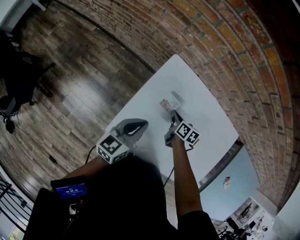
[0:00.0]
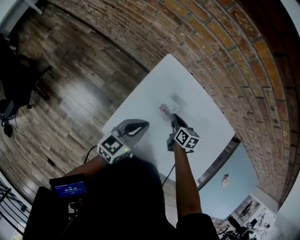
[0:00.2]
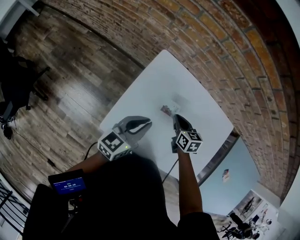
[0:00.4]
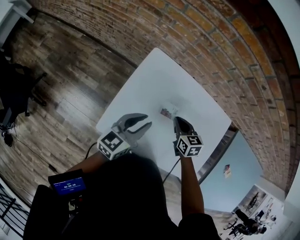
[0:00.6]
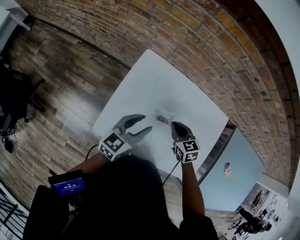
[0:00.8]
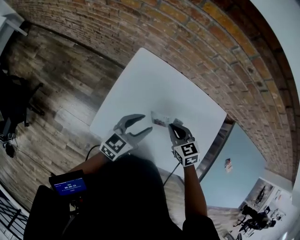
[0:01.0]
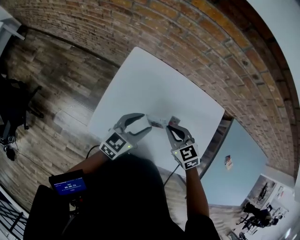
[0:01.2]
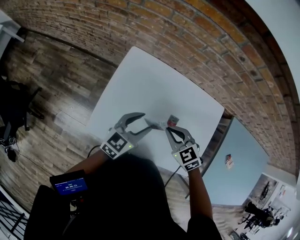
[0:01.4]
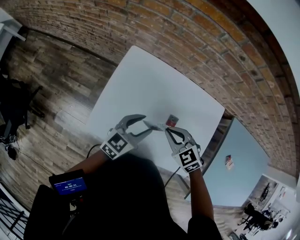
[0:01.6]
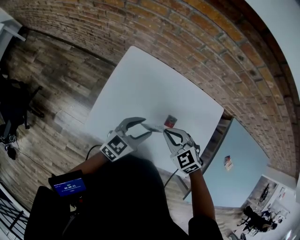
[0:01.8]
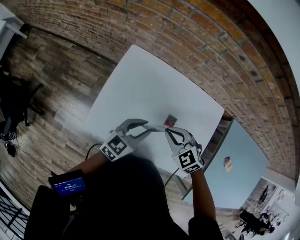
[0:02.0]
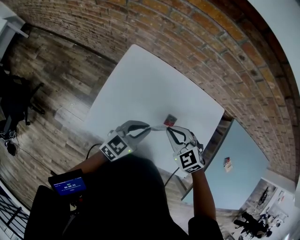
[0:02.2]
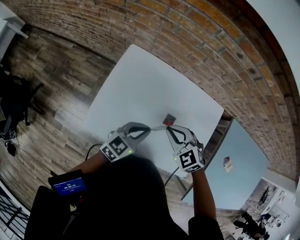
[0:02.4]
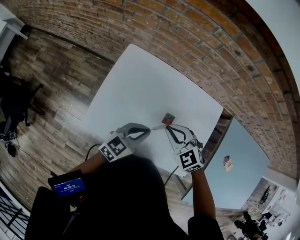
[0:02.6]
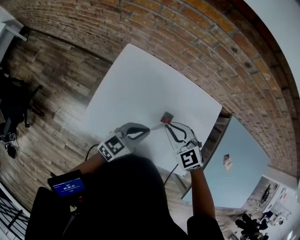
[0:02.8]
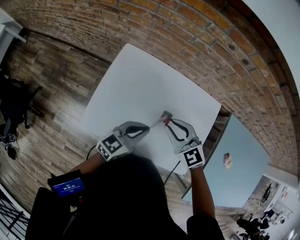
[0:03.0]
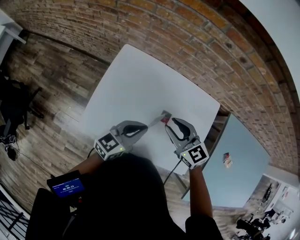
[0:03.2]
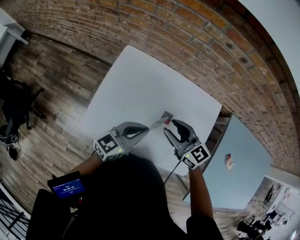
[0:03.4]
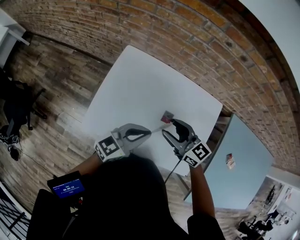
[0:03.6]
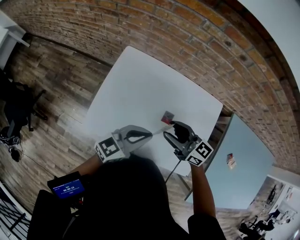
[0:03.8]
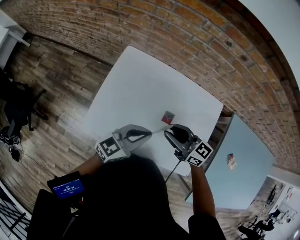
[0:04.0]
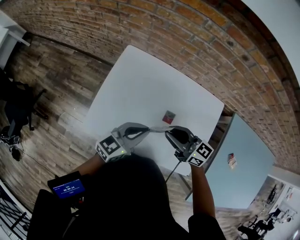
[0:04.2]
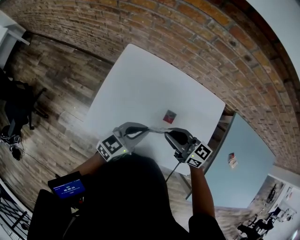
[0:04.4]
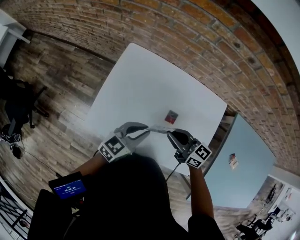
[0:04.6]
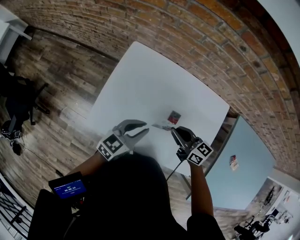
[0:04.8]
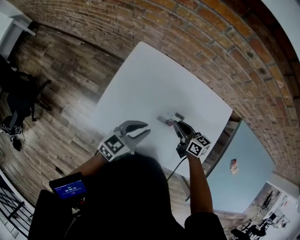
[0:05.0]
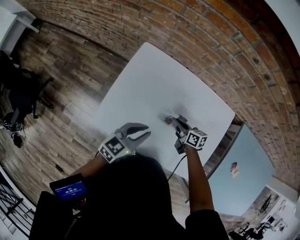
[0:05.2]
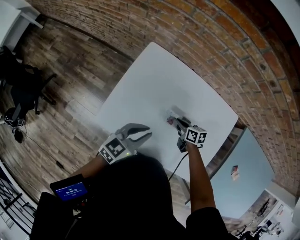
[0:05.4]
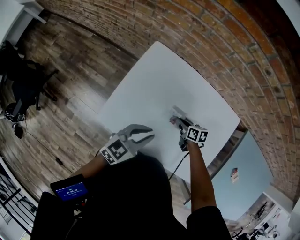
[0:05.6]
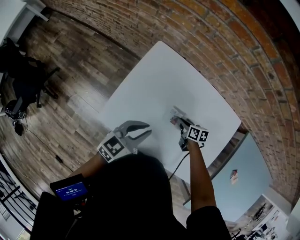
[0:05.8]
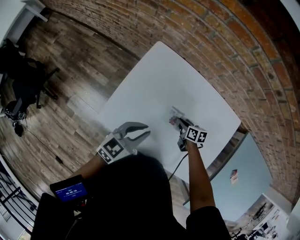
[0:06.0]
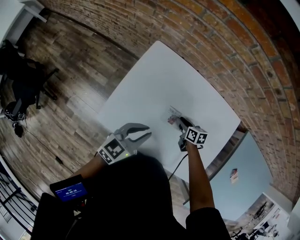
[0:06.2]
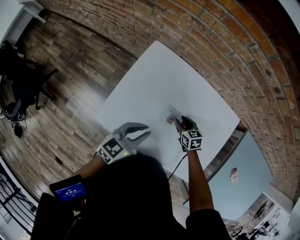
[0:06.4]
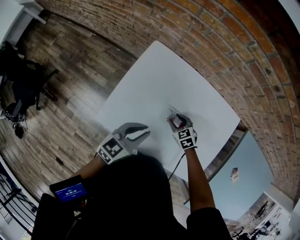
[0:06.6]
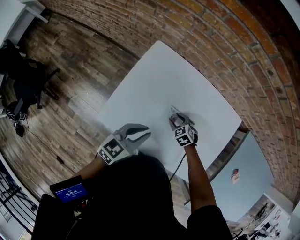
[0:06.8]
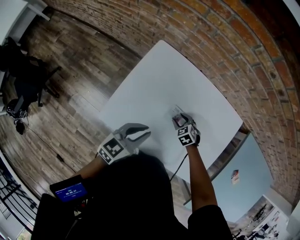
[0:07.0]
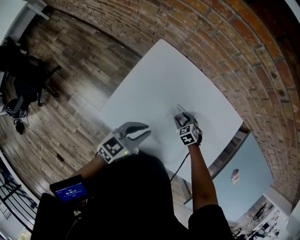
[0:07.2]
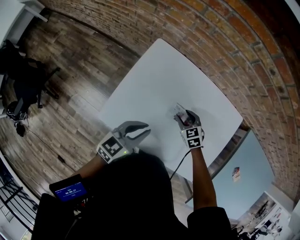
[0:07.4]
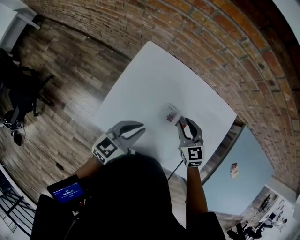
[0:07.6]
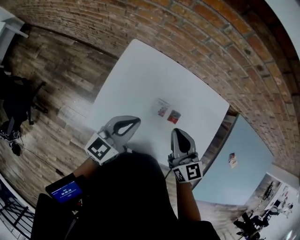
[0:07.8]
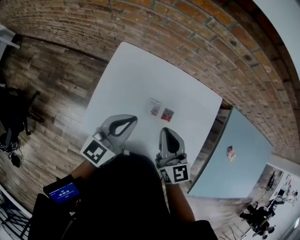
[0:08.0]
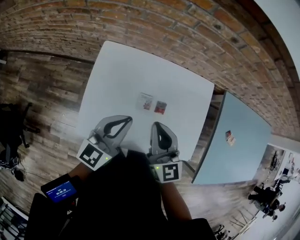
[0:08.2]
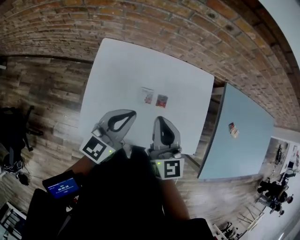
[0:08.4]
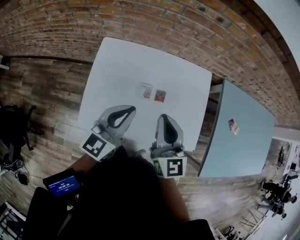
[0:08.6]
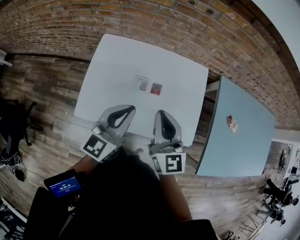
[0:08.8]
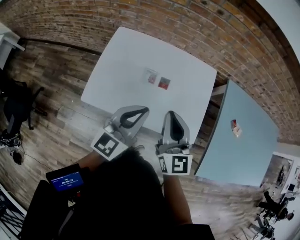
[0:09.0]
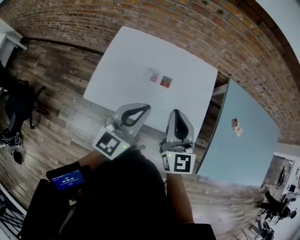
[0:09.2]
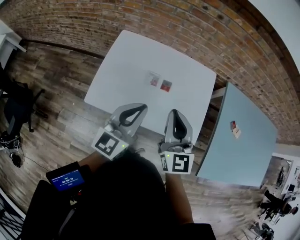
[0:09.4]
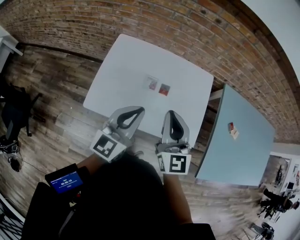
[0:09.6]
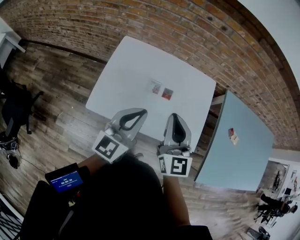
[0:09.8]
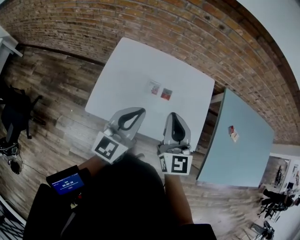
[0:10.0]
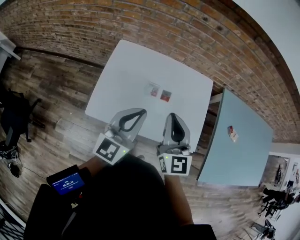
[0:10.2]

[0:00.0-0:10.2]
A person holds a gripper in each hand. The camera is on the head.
0.0 to 1.4 s: The left gripper is displaced to the right by about 15 cm, rotates about 20 degrees, and opens, while the right gripper goes some 25 cm upward, backward and to the right, and twists approximately 60 degrees counterclockwise, seen from behind.
1.4 to 3.0 s: The left gripper is displaced to the right by some 5 cm, and closes. The right gripper travels upward by about 5 cm.
3.0 to 4.4 s: The right gripper rotates some 40 degrees, and opens, then closes again.
4.4 to 5.8 s: The left gripper shifts some 10 cm to the left. Meanwhile the right gripper is displaced downward by some 25 cm, and points its fingers some 30 degrees further downward.
5.8 to 7.2 s: The right gripper twists some 60 degrees counterclockwise, seen from behind, and opens.
7.2 to 8.8 s: The left gripper travels upward and to the right by roughly 15 cm, and turns by roughly 20 degrees. The right gripper travels upward and backward by roughly 40 cm, tilts its fingers some 60 degrees upward, and closes.

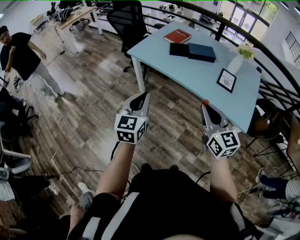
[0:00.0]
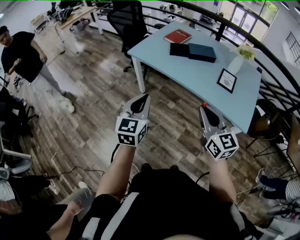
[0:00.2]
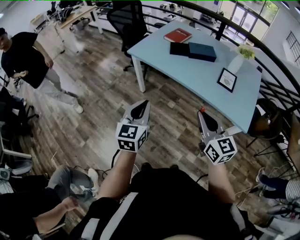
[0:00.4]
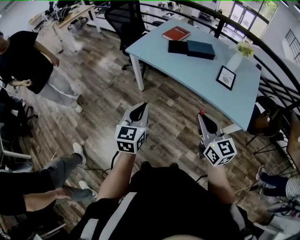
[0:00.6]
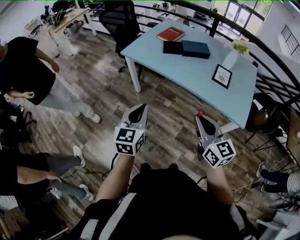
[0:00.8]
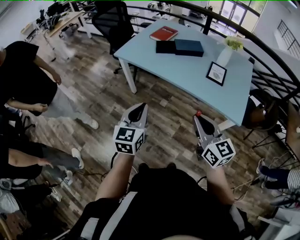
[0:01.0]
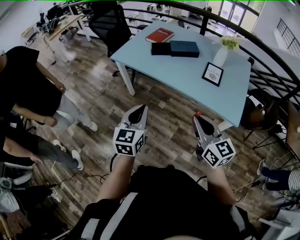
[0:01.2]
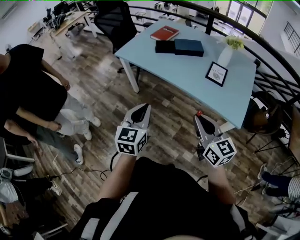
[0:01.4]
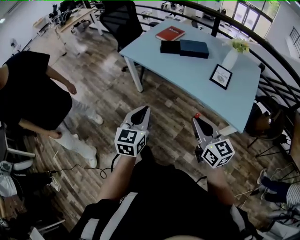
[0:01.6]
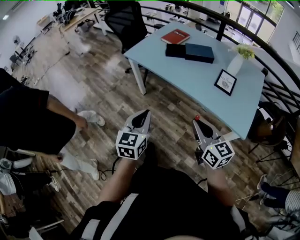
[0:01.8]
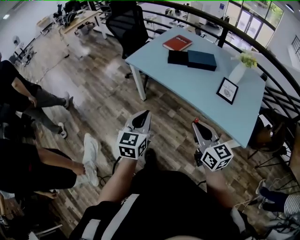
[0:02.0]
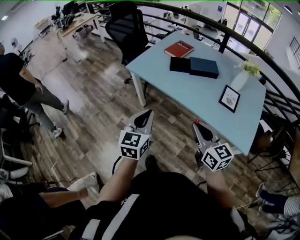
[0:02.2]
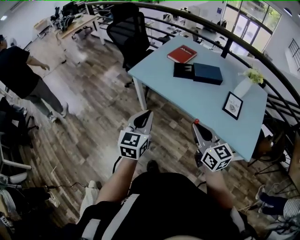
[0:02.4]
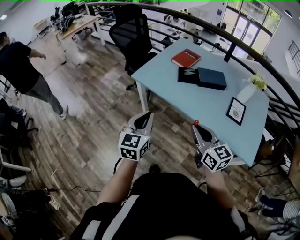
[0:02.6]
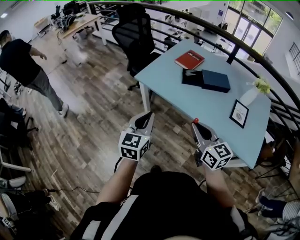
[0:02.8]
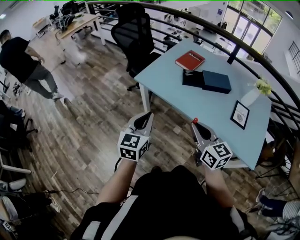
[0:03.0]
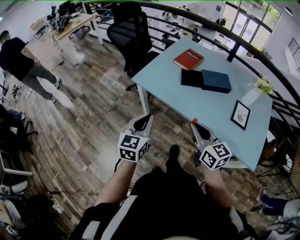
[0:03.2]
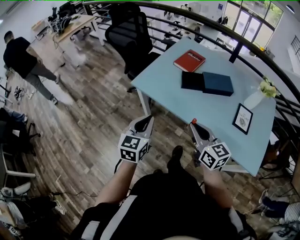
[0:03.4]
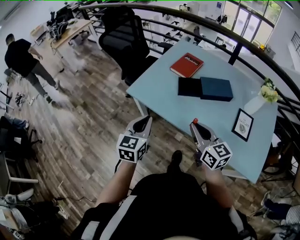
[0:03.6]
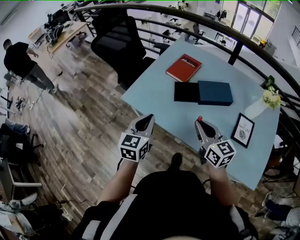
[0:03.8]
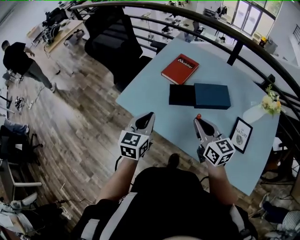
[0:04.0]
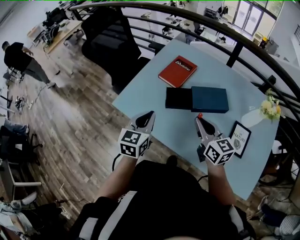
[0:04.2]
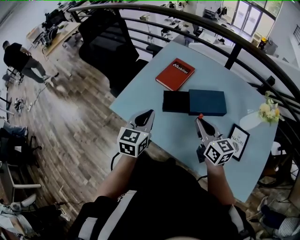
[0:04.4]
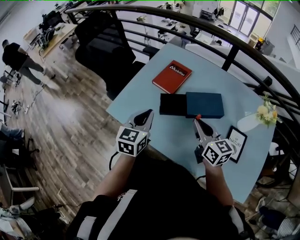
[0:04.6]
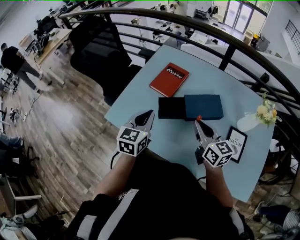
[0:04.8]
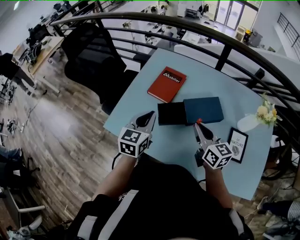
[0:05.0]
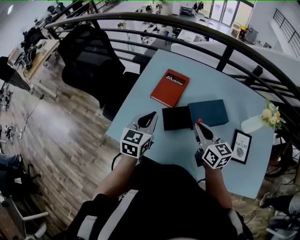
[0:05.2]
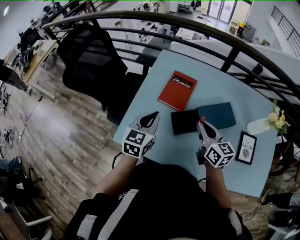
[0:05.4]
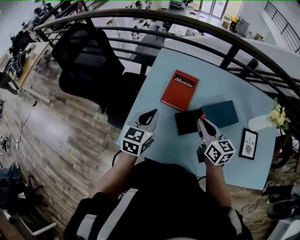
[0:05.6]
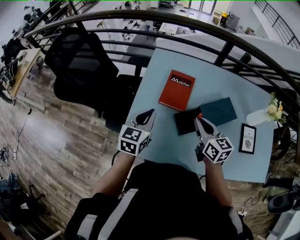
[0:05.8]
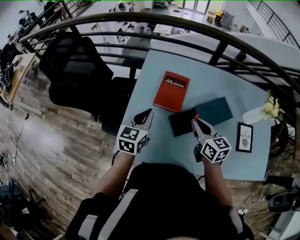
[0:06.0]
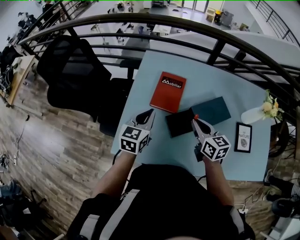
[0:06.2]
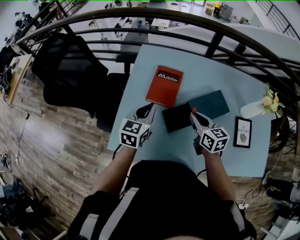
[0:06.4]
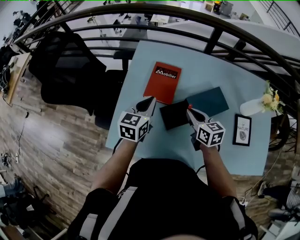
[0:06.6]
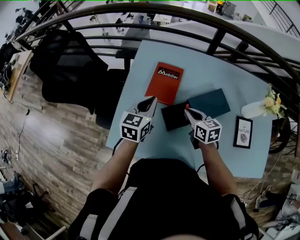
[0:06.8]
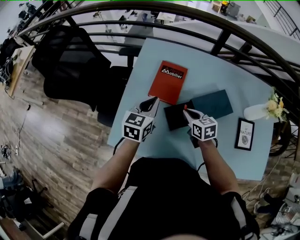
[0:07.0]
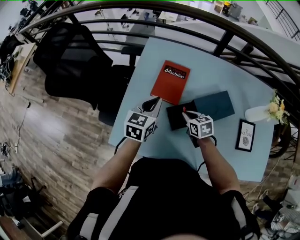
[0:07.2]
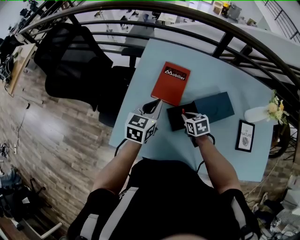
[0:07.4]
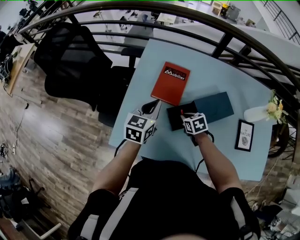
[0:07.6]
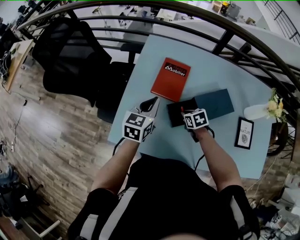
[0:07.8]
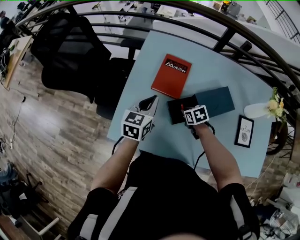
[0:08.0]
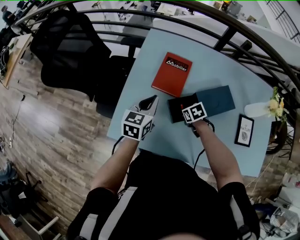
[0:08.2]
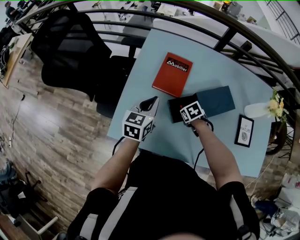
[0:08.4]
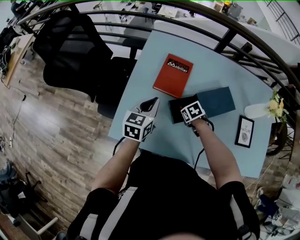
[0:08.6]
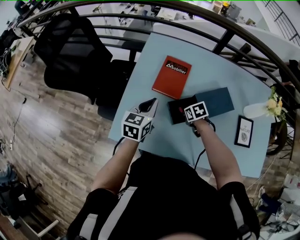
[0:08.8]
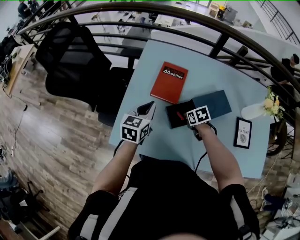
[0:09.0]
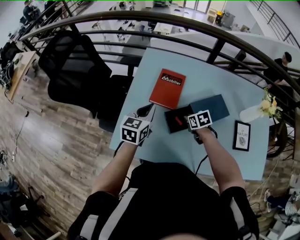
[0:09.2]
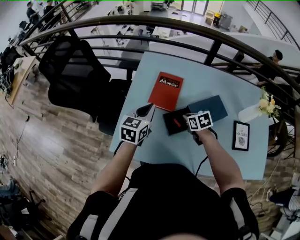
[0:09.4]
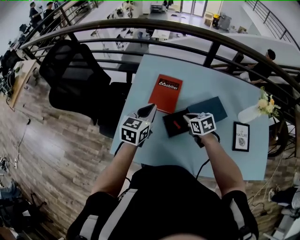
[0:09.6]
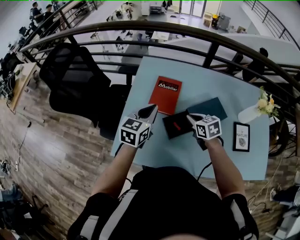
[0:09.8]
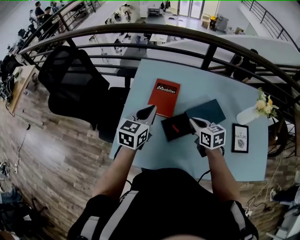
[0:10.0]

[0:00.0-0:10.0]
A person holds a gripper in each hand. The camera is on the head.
0.0 to 1.4 s: The grippers both shift to the right by about 10 cm.
1.4 to 2.8 s: The two grippers go some 30 cm forward and to the left.
2.8 to 4.2 s: The grippers both shift forward and to the right by approximately 35 cm.
4.2 to 5.8 s: The two grippers go approximately 25 cm forward and to the left. The left gripper turns by some 20 degrees. Meanwhile the right gripper swivels some 20 degrees.
5.8 to 7.2 s: The right gripper goes approximately 15 cm downward, and turns by about 30 degrees. Meanwhile the left gripper is displaced to the right by about 5 cm.
7.2 to 8.6 s: The right gripper shifts some 10 cm downward, and rotates approximately 30 degrees. Meanwhile the left gripper changes place by roughly 5 cm.
8.6 to 10.0 s: The right gripper moves upward, about 20 cm, and angles its fingers upward, by approximately 40 degrees; the left gripper is displaced upward by roughly 10 cm.

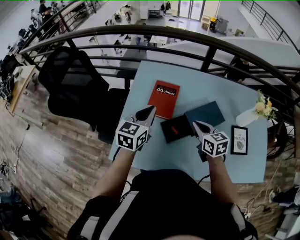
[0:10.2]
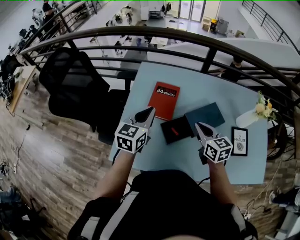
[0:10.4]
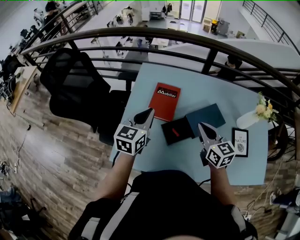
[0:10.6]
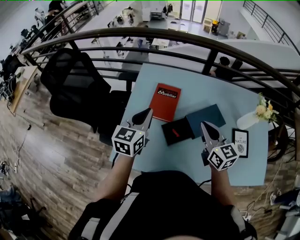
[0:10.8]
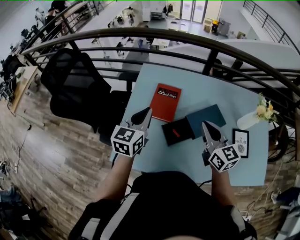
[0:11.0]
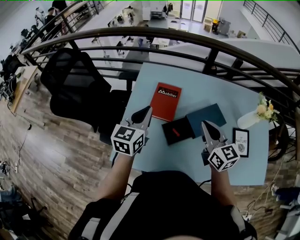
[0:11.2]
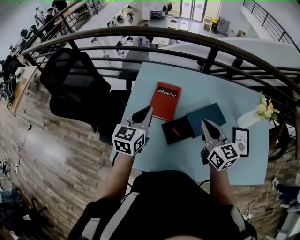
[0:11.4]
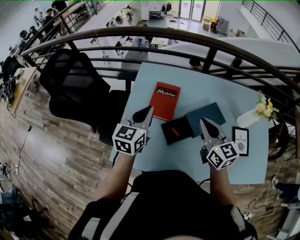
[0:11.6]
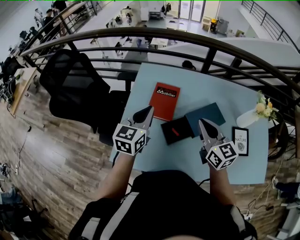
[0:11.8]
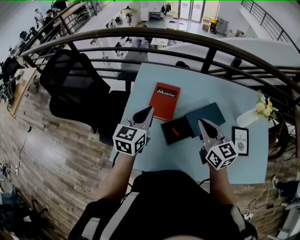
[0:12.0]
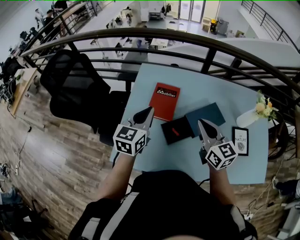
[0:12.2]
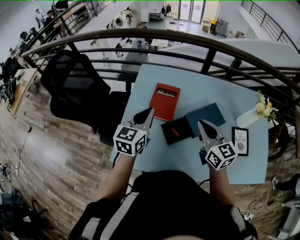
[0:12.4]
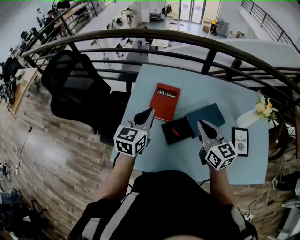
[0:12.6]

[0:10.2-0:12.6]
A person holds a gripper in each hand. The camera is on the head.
10.2 to 11.4 s: The right gripper is displaced upward by about 10 cm, and swivels roughly 20 degrees.
11.4 to 12.6 s: Neither gripper changes place.

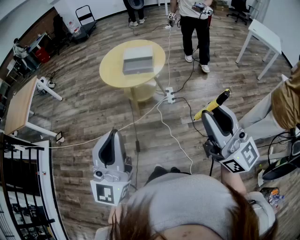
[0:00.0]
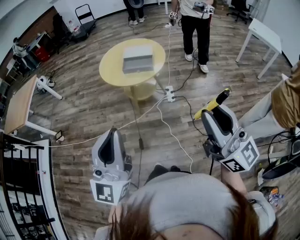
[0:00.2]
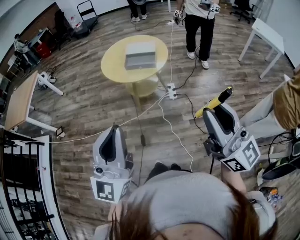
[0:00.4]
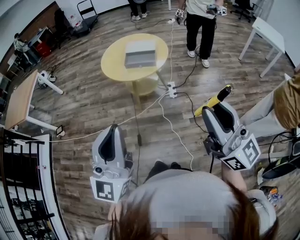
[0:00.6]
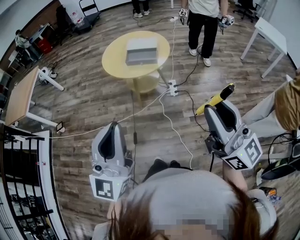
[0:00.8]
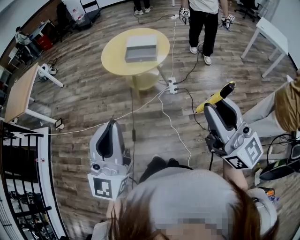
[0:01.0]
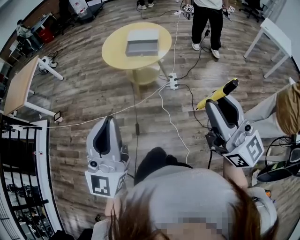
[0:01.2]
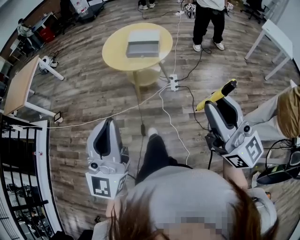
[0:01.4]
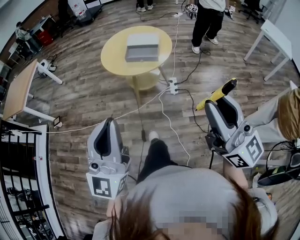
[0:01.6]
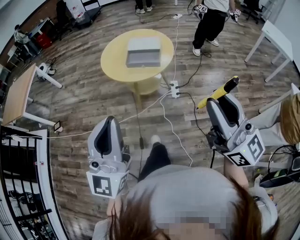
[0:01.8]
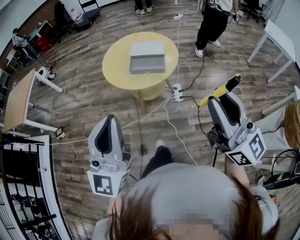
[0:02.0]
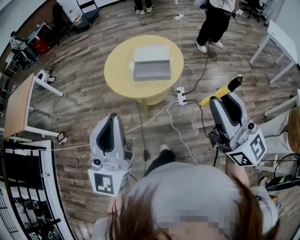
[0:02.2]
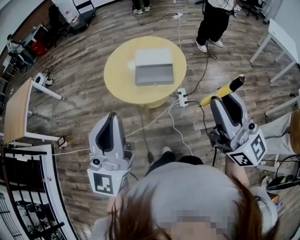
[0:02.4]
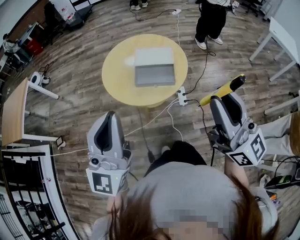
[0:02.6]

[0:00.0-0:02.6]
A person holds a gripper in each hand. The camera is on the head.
0.0 to 1.2 s: There are only small adjustments of the grippers.
1.2 to 2.6 s: Both grippers move forward, about 30 cm.
